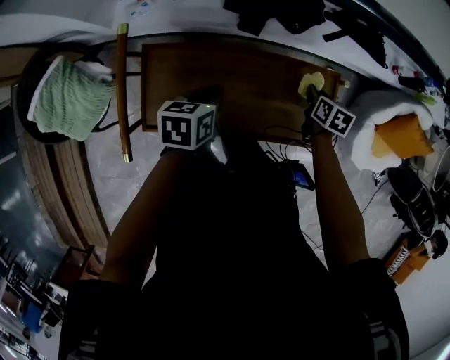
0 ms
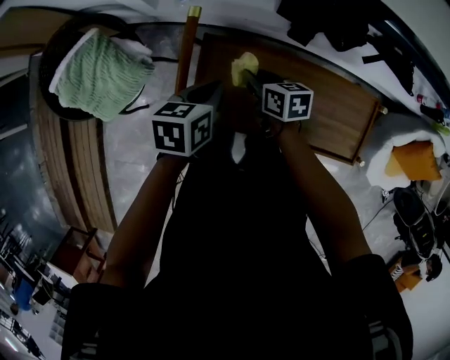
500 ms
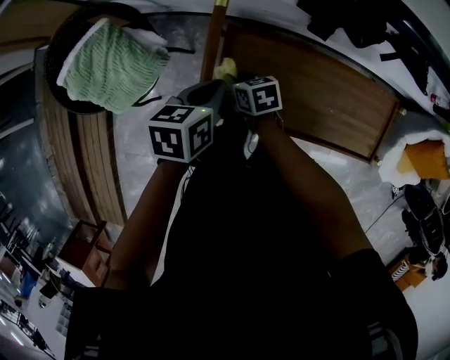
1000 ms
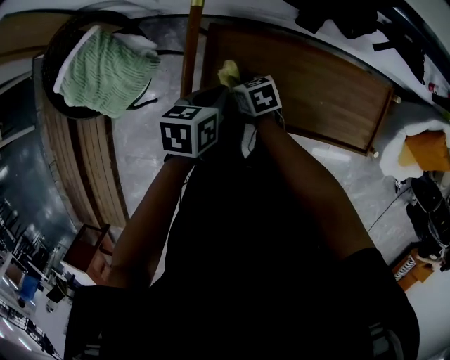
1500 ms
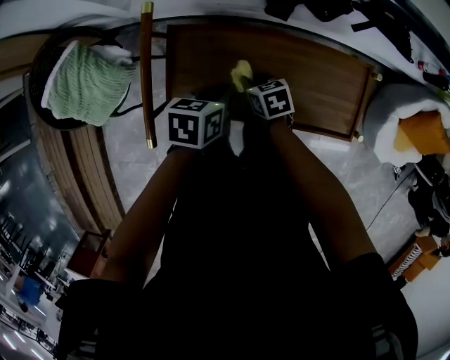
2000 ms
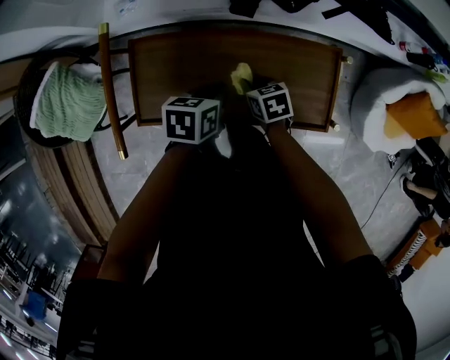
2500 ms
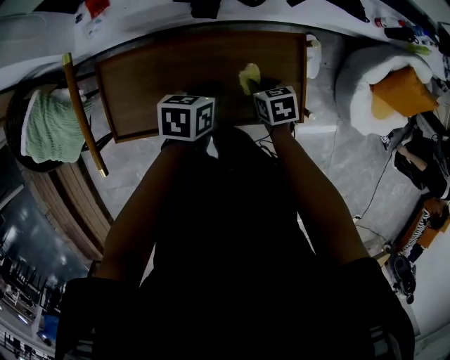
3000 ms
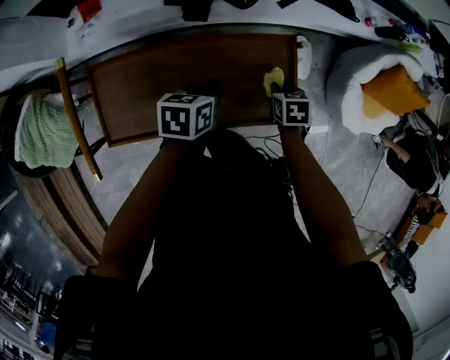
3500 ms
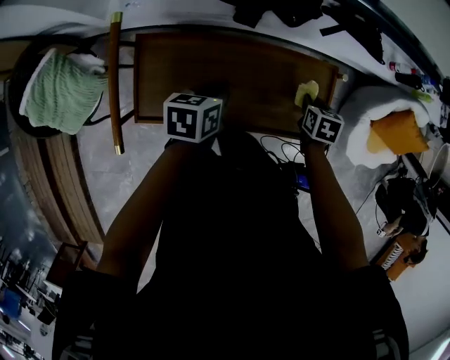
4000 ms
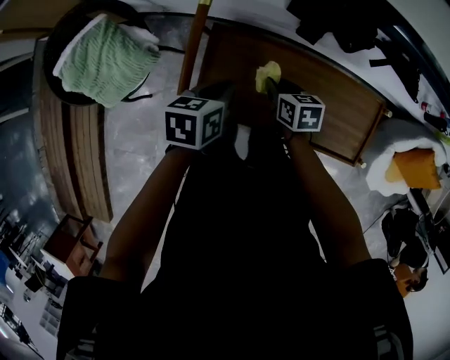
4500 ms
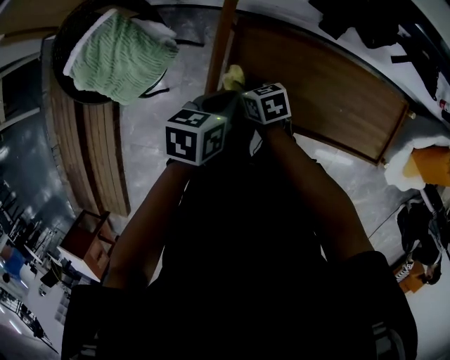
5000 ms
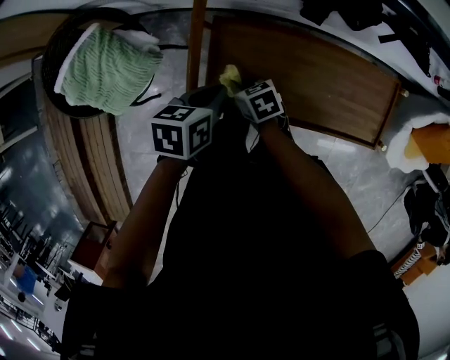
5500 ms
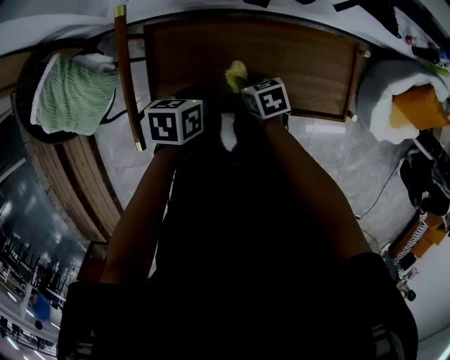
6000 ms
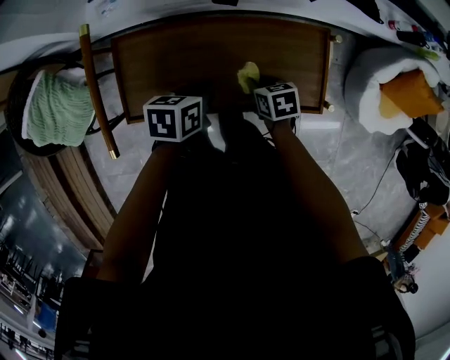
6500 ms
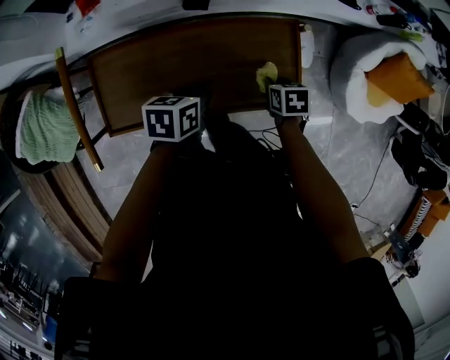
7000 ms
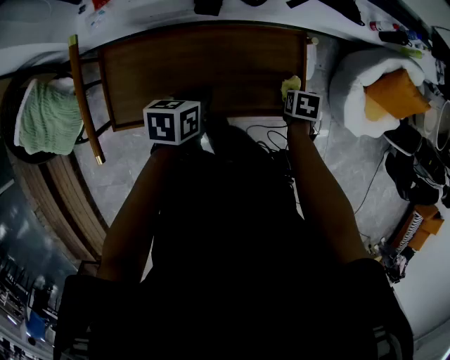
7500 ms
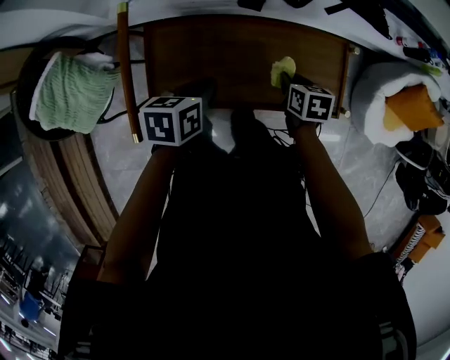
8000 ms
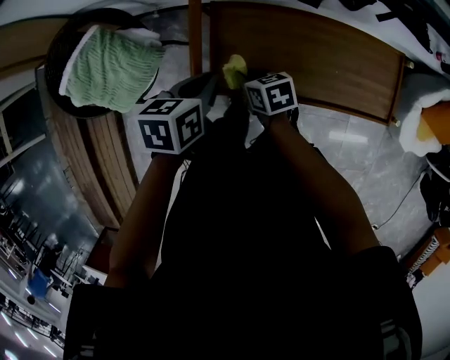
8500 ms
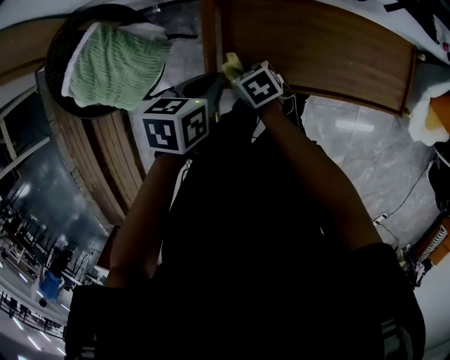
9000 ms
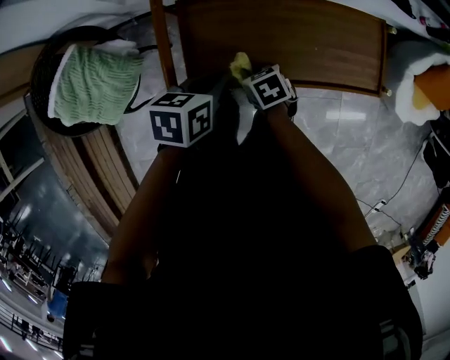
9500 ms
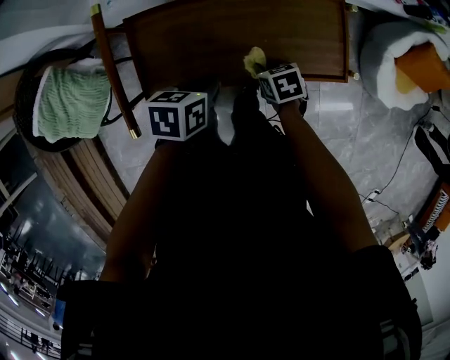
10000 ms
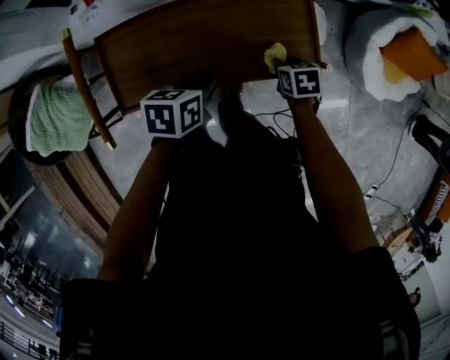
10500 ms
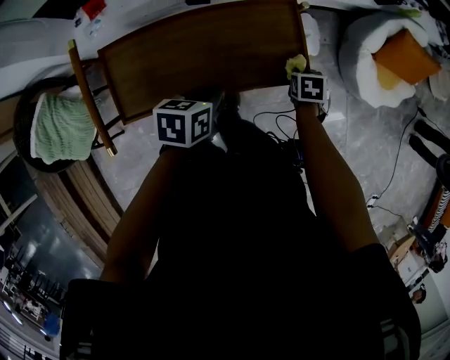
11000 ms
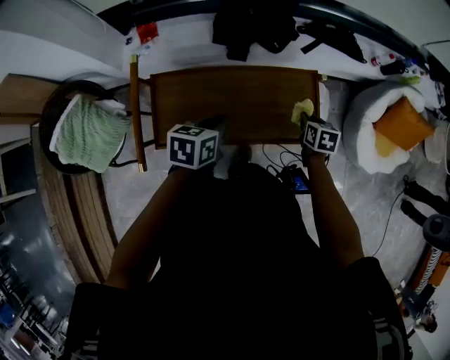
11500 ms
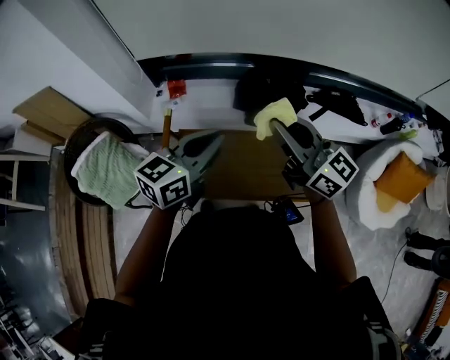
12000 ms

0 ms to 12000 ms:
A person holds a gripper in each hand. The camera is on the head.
0 ms to 2000 ms: The right gripper rotates some 40 degrees.
2000 ms to 4000 ms: The right gripper moves about 30 cm, and rotates roughly 30 degrees.
4000 ms to 6000 ms: The right gripper rotates some 30 degrees.
6000 ms to 8000 ms: The right gripper changes its angle by approximately 20 degrees. Meanwhile the left gripper moves upward, some 5 cm.
8000 ms to 10000 ms: The left gripper goes to the left and returns, approximately 20 cm each way, while the right gripper is displaced backward and downward by about 10 cm, and travels to the left and back again, roughly 40 cm each way.
10000 ms to 12000 ms: The left gripper goes some 30 cm upward, and tips its fingers upward by roughly 40 degrees; the right gripper travels upward by roughly 50 cm, and tilts its fingers about 70 degrees upward.

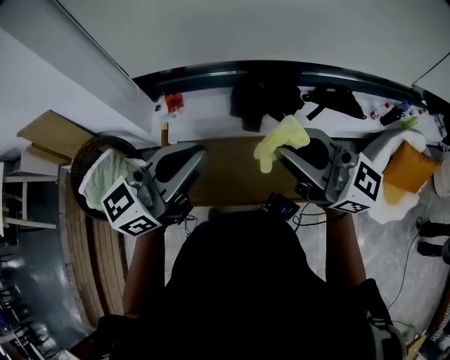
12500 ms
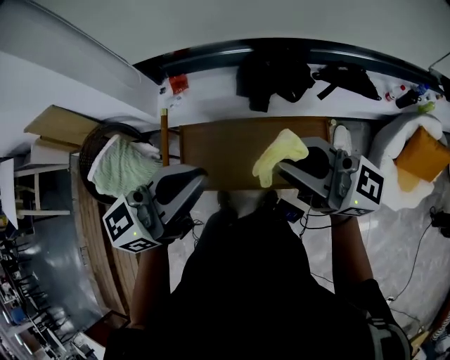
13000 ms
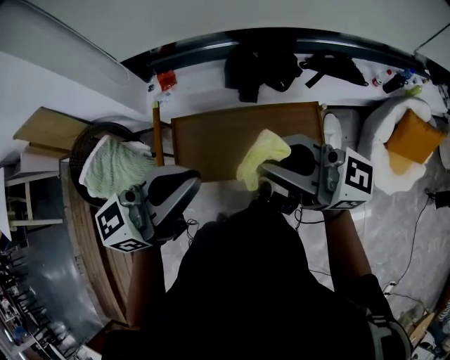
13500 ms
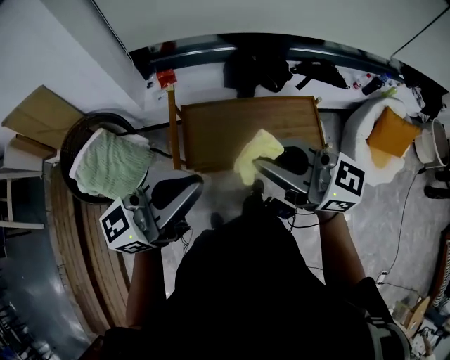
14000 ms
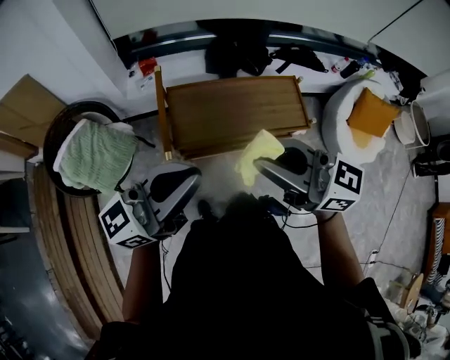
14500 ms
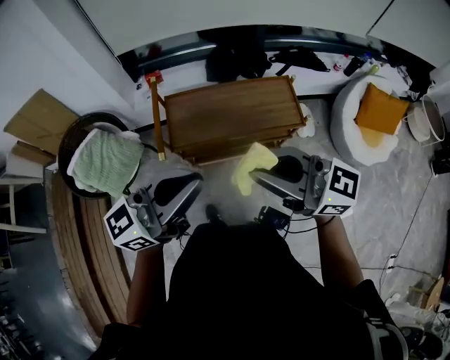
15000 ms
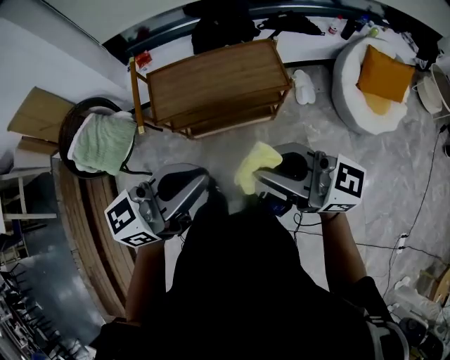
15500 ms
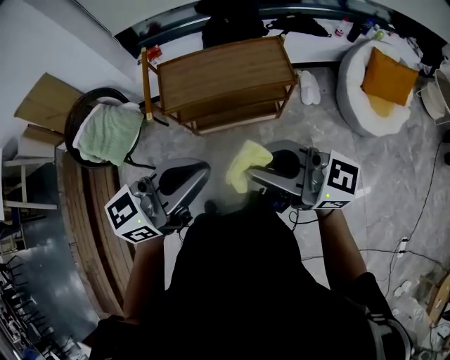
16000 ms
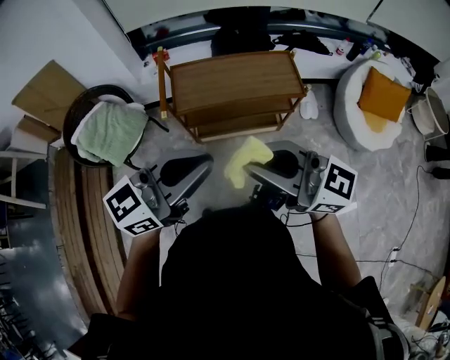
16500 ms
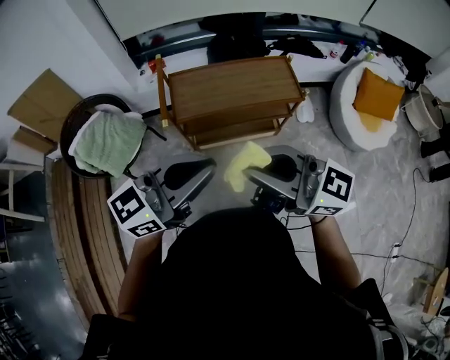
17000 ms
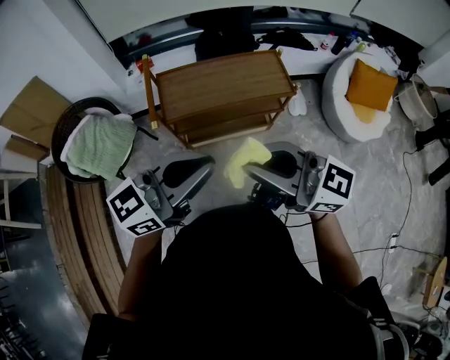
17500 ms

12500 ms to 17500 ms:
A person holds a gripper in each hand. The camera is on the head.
12500 ms to 15000 ms: The right gripper ends up some 30 cm from where it was, while the left gripper shifts by some 30 cm.
15000 ms to 17500 ms: The right gripper moves about 10 cm.

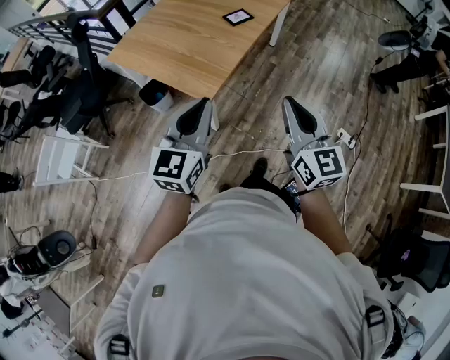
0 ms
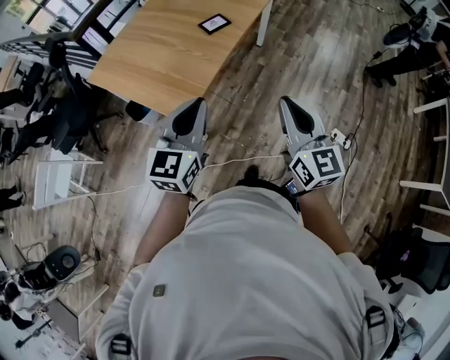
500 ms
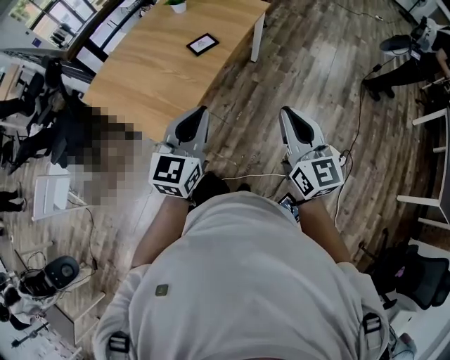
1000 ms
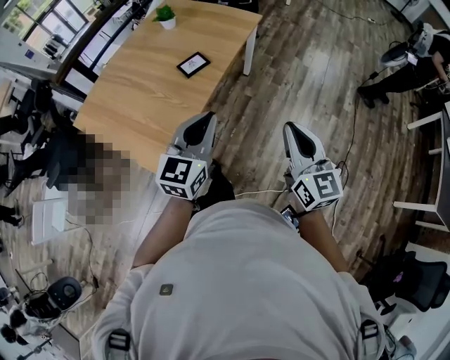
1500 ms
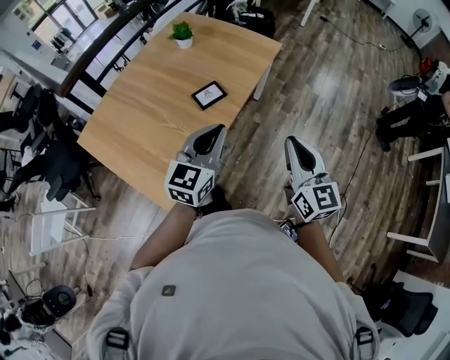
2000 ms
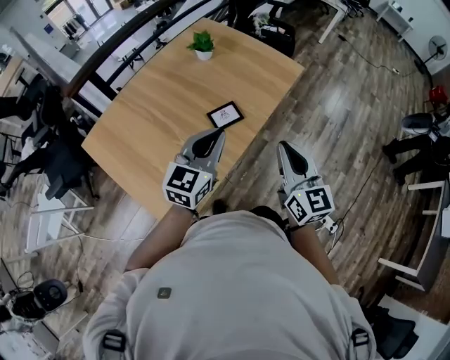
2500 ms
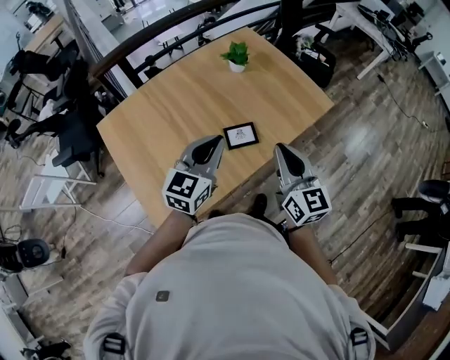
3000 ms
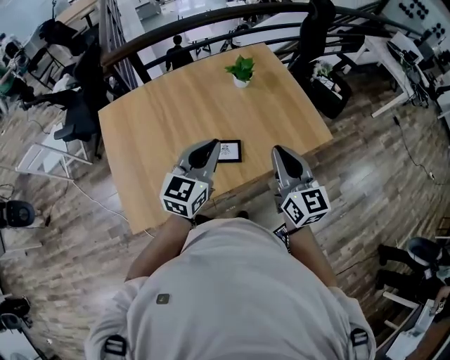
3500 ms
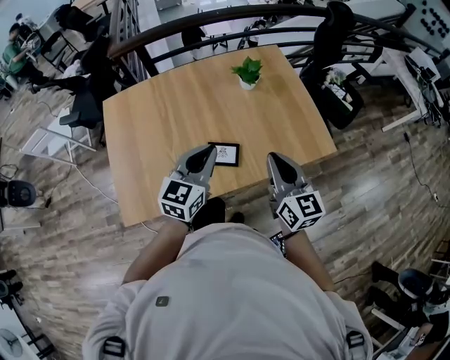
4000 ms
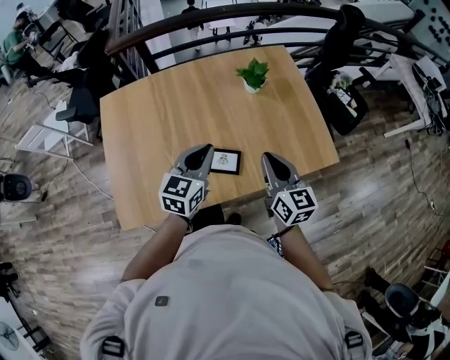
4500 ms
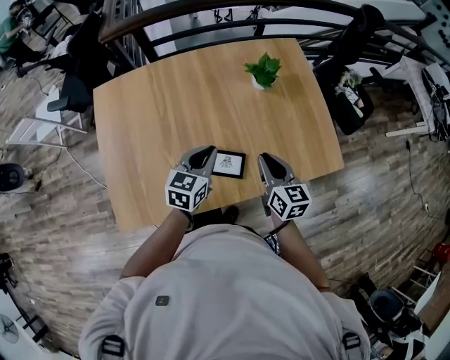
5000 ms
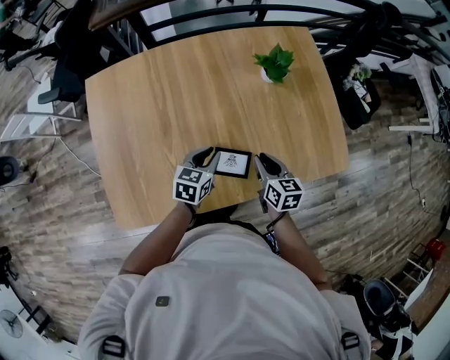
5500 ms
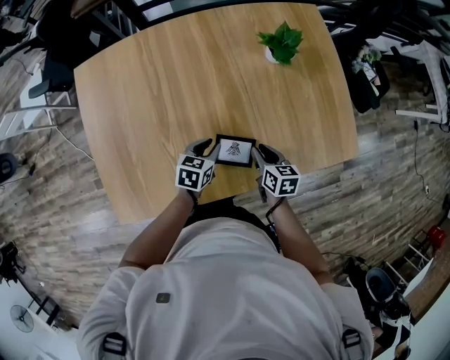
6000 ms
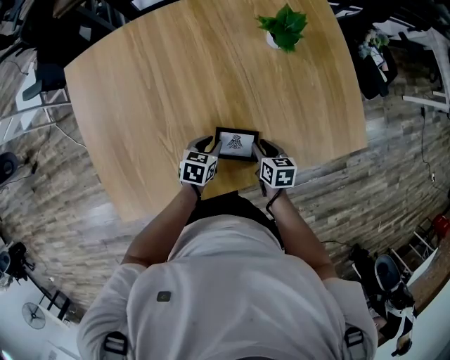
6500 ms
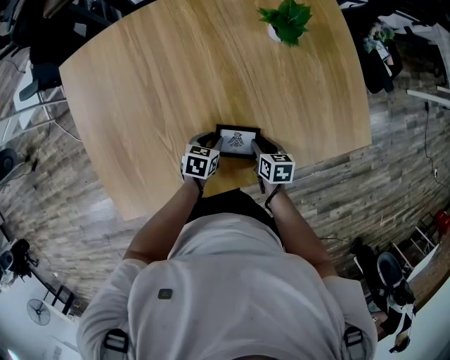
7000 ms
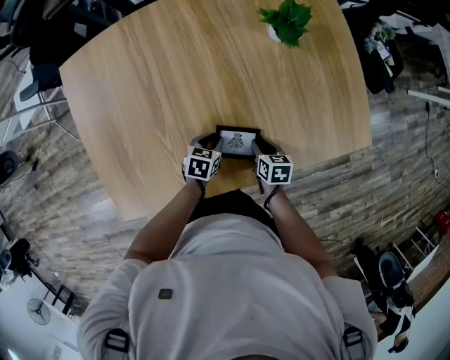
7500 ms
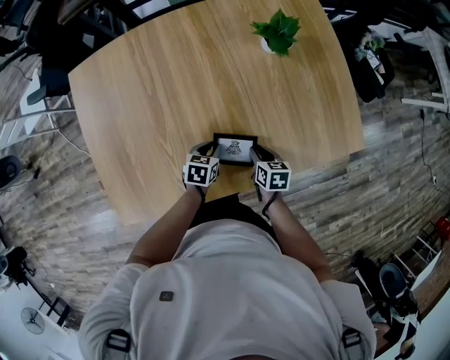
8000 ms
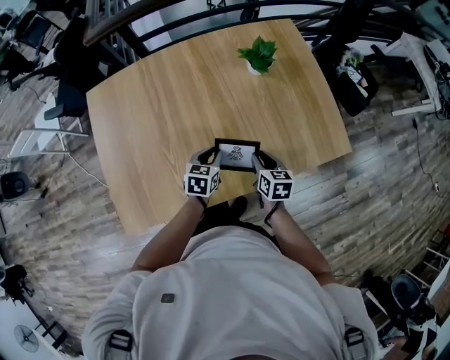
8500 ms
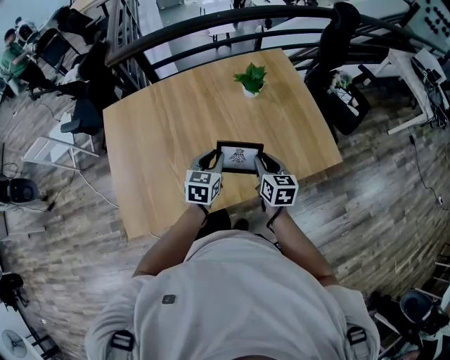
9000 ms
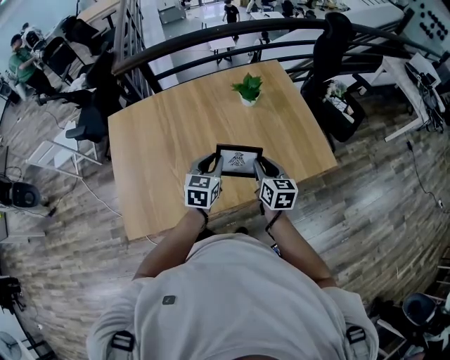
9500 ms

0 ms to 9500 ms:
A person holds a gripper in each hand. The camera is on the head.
0 ms to 2000 ms: Both grippers are carried forward, some 50 cm.
2000 ms to 4000 ms: The right gripper ends up approximately 40 cm from where it was, and changes its angle by about 40 degrees; the left gripper ends up some 30 cm from where it was, and changes its angle by about 40 degrees.
4000 ms to 5500 ms: The two grippers go roughly 30 cm downward and forward. The right gripper tilts its fingers roughly 30 degrees downward, while the left gripper swivels some 30 degrees.
5500 ms to 7500 ms: Both grippers move downward, about 20 cm. The right gripper swivels about 20 degrees. Meanwhile the left gripper rotates about 20 degrees.
7500 ms to 9500 ms: The two grippers go roughly 30 cm upward. The right gripper angles its fingers upward, by approximately 30 degrees. The left gripper rotates about 40 degrees.
